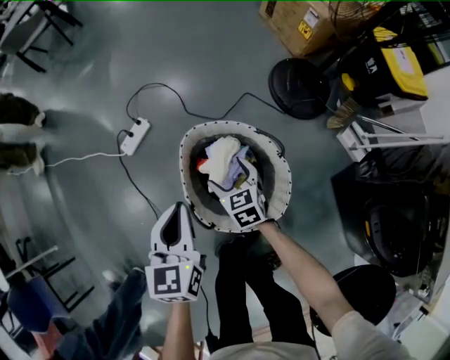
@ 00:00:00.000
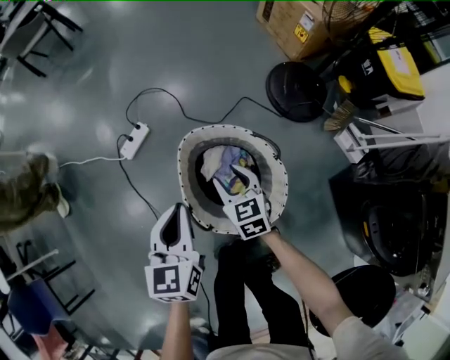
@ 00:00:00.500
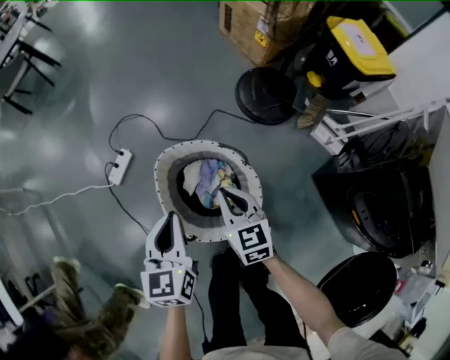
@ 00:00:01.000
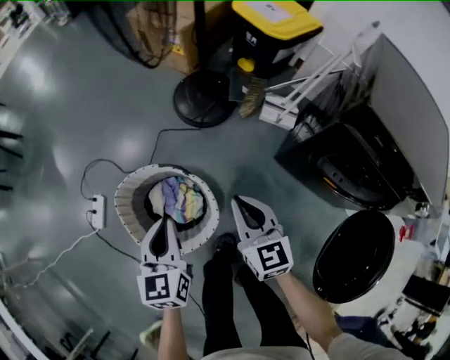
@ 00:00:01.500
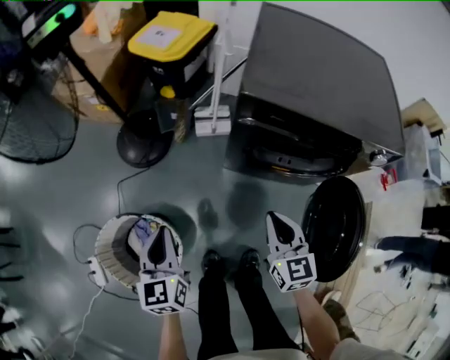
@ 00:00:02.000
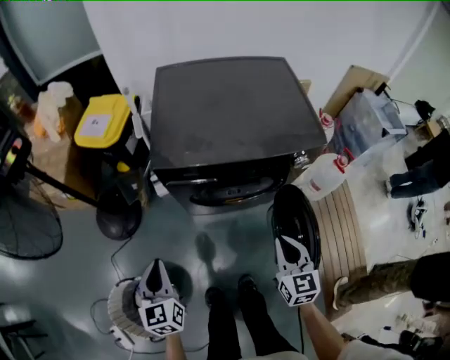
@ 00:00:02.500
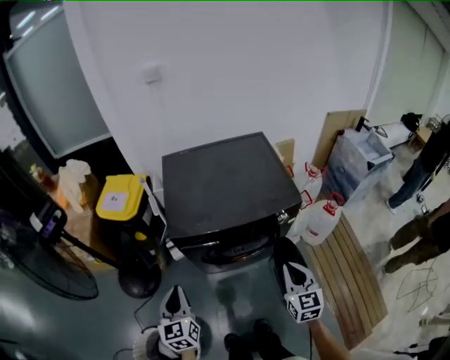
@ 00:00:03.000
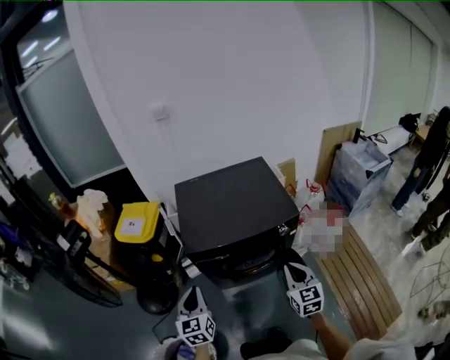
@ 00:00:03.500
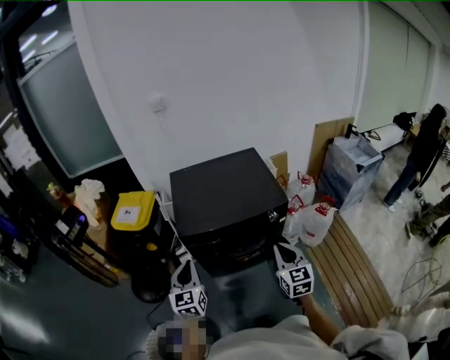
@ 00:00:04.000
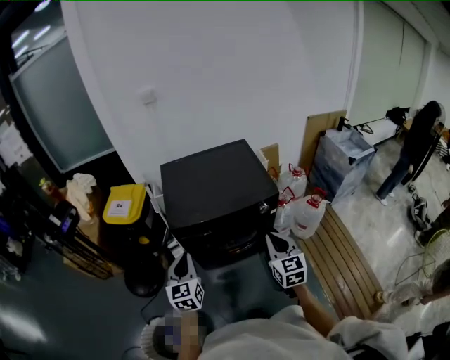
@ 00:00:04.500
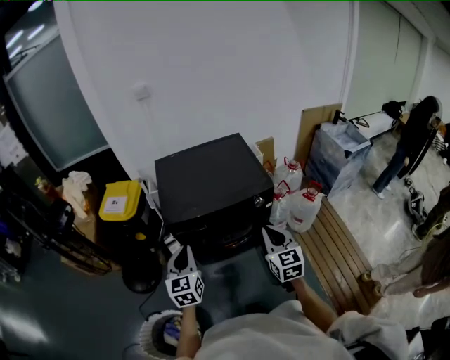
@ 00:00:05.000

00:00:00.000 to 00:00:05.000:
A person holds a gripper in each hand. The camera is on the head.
00:00:00.000 to 00:00:02.500: The two grippers travel together, about 70 cm. The left gripper changes its angle by some 60 degrees; the right gripper swivels some 90 degrees, and closes.
00:00:02.500 to 00:00:05.000: The right gripper is displaced upward by approximately 20 cm. Meanwhile the left gripper shifts approximately 25 cm upward and to the right, and changes its angle by some 20 degrees.

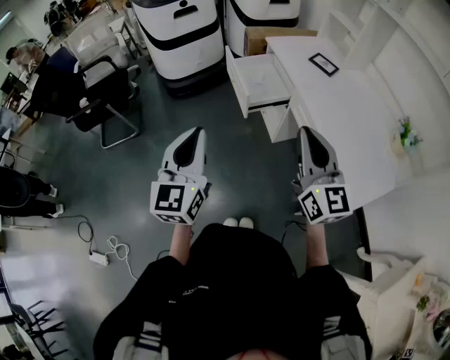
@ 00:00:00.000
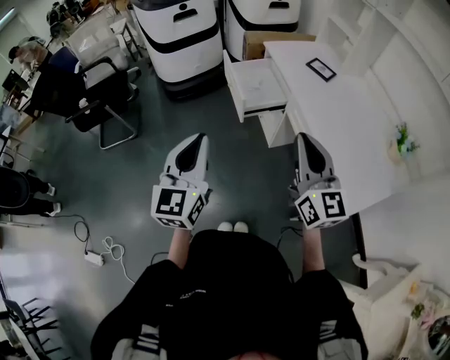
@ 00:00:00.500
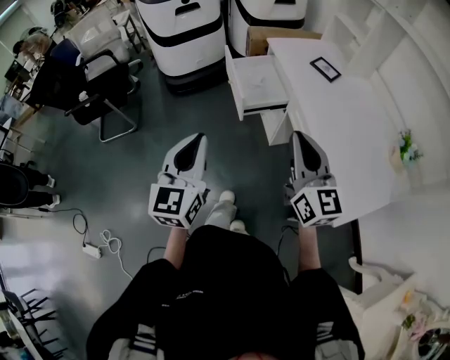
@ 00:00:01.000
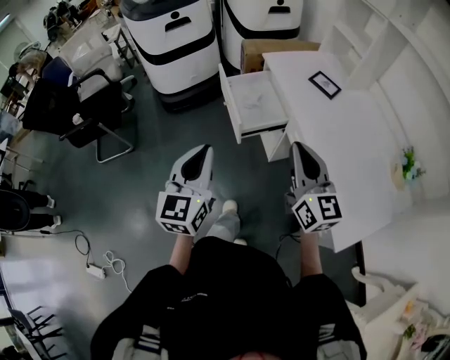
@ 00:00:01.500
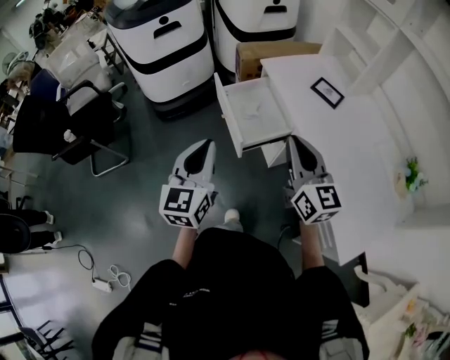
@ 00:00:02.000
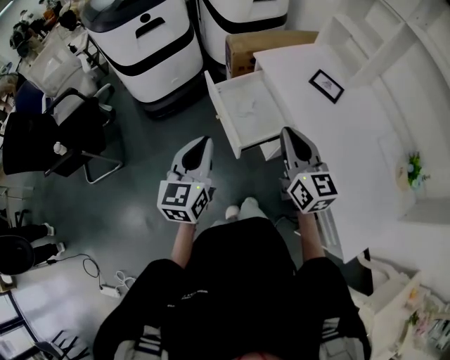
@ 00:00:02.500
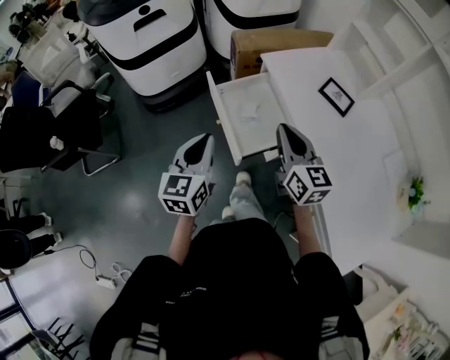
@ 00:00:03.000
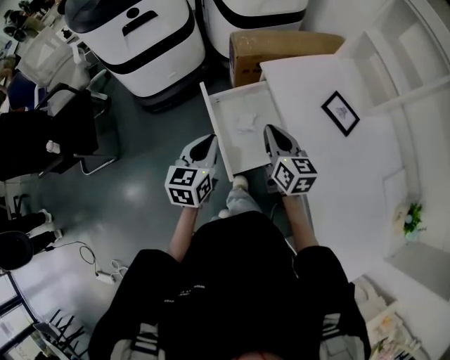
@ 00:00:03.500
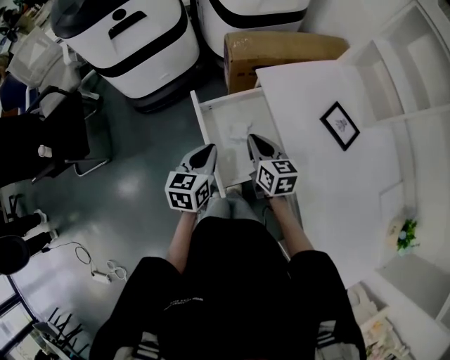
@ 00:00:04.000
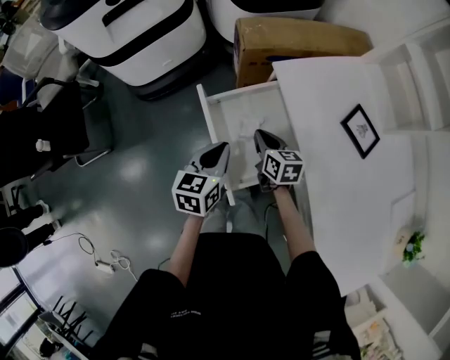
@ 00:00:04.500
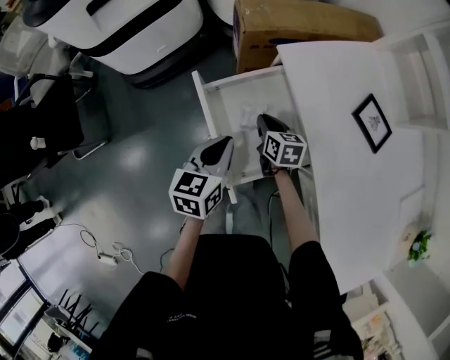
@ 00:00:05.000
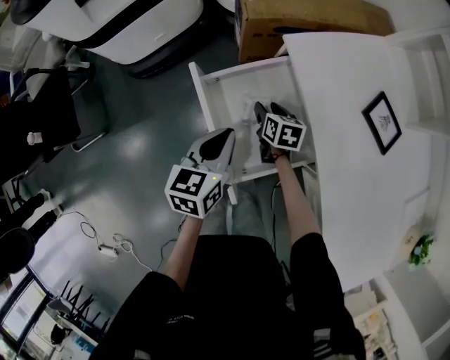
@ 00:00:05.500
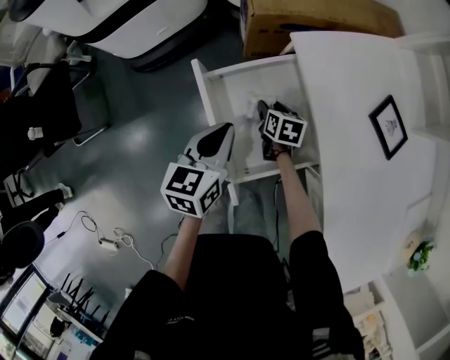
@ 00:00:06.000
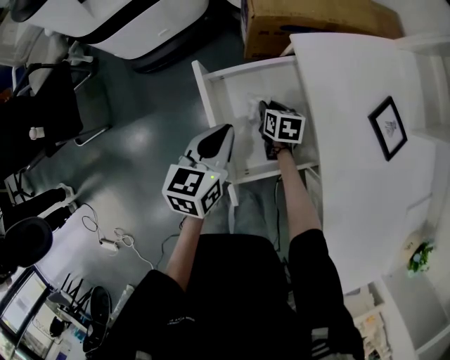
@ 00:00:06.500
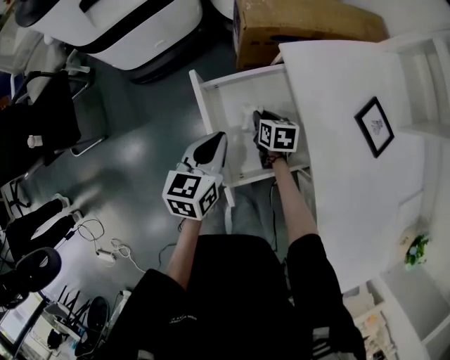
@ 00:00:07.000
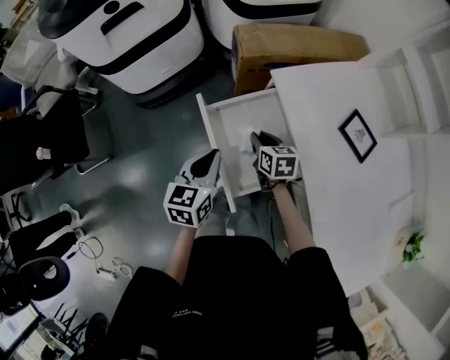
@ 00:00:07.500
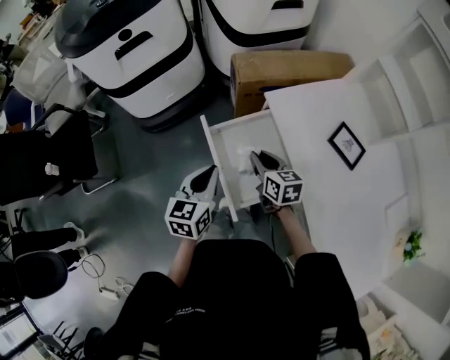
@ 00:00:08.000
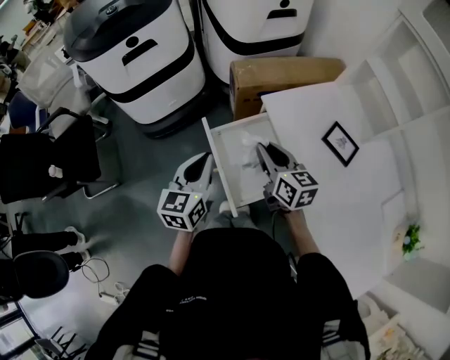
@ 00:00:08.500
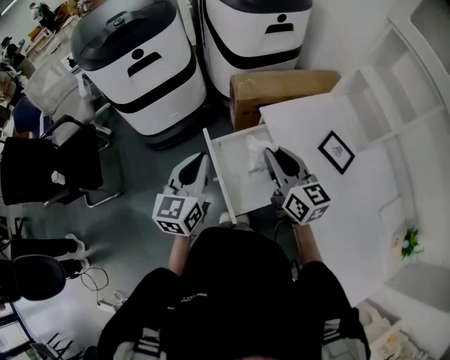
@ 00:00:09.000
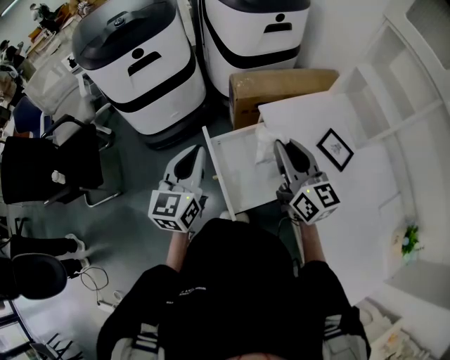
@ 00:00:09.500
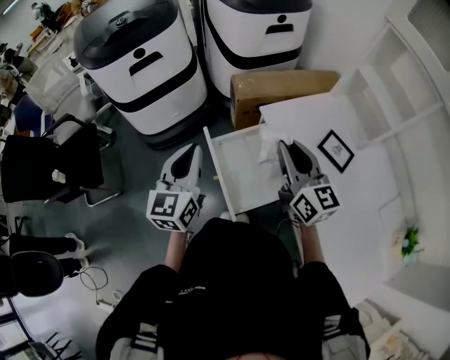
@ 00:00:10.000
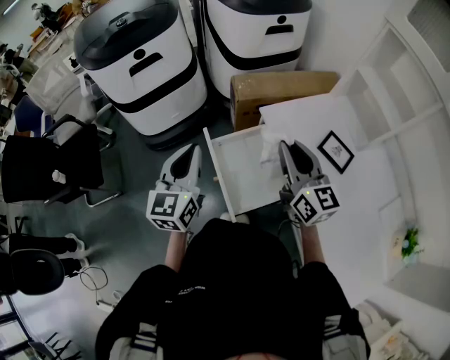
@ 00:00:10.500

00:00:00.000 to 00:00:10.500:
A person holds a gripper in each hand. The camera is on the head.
00:00:00.000 to 00:00:02.000: The two grippers go approximately 25 cm forward.
00:00:02.000 to 00:00:04.000: The grippers both shift forward and downward by roughly 40 cm. The right gripper turns by some 30 degrees, while the left gripper changes its angle by approximately 30 degrees.
00:00:04.000 to 00:00:06.500: The left gripper travels downward and forward by roughly 10 cm. The right gripper moves downward, about 25 cm, rotates roughly 30 degrees, and opens and closes again.
00:00:06.500 to 00:00:08.500: The left gripper heads upward, covering about 15 cm, while the right gripper is displaced upward by approximately 35 cm, and angles its fingers upward, by about 40 degrees.
00:00:08.500 to 00:00:10.500: The grippers both shift upward by approximately 10 cm. The right gripper swivels approximately 20 degrees.

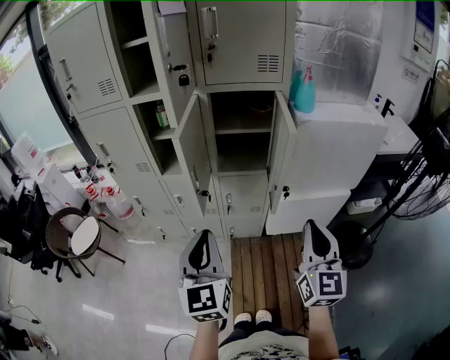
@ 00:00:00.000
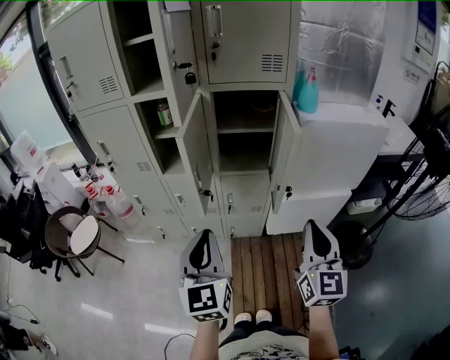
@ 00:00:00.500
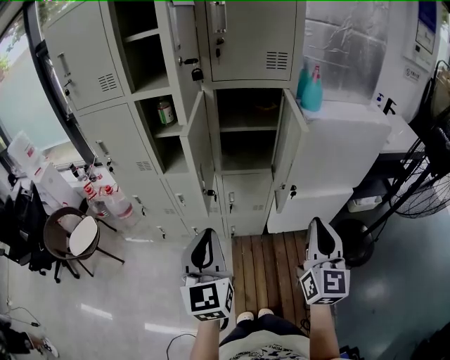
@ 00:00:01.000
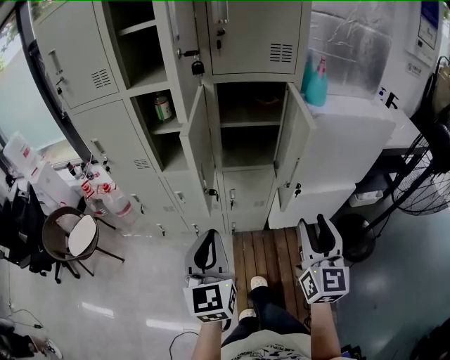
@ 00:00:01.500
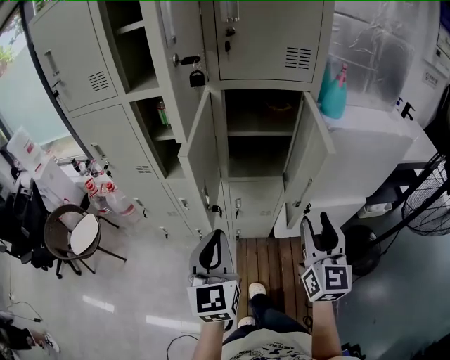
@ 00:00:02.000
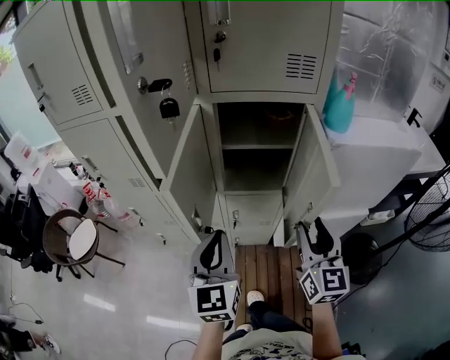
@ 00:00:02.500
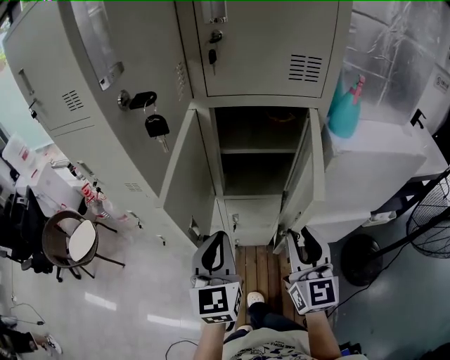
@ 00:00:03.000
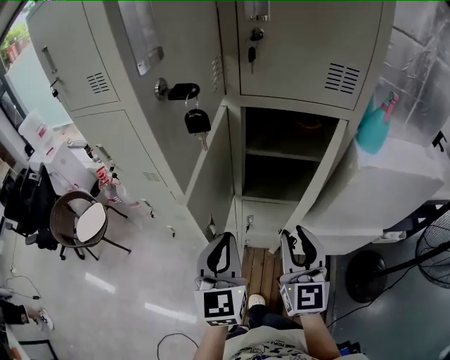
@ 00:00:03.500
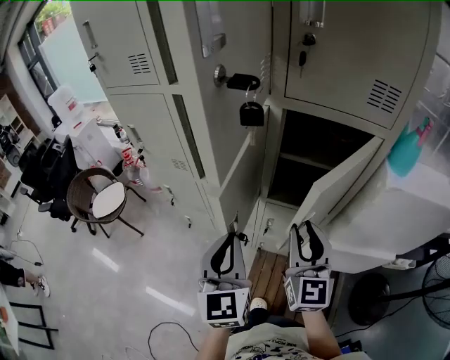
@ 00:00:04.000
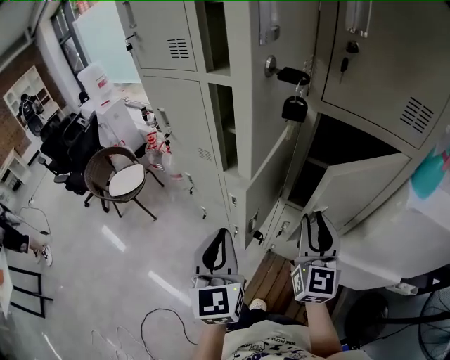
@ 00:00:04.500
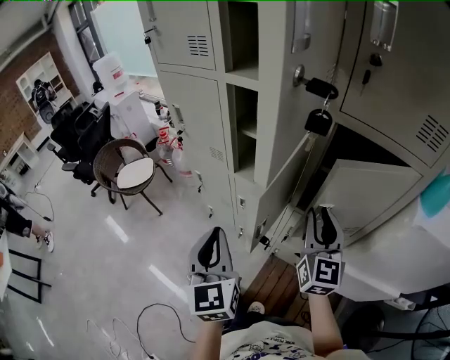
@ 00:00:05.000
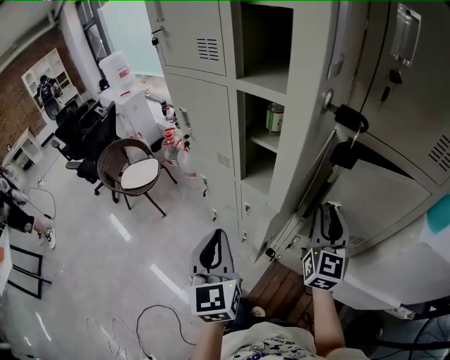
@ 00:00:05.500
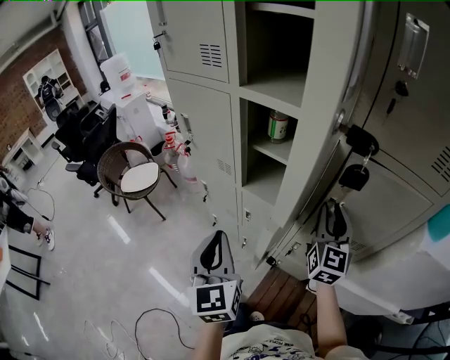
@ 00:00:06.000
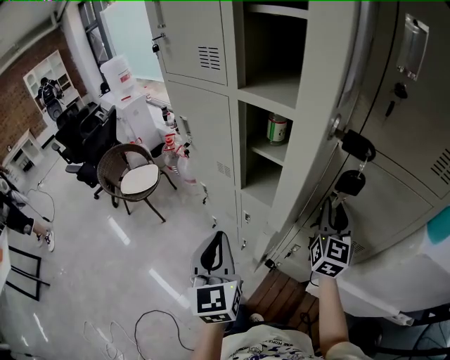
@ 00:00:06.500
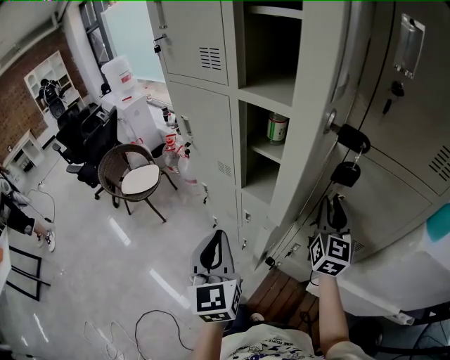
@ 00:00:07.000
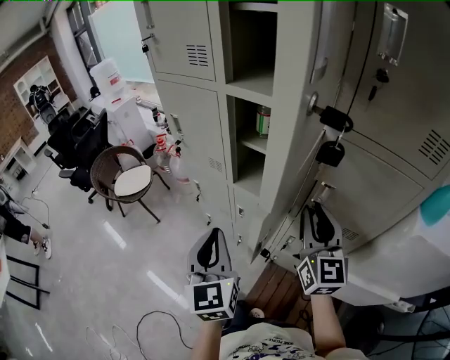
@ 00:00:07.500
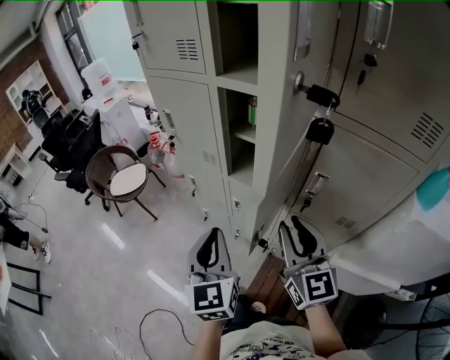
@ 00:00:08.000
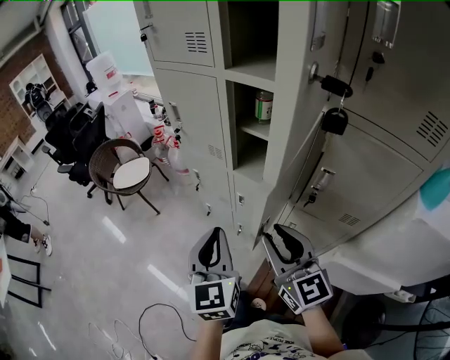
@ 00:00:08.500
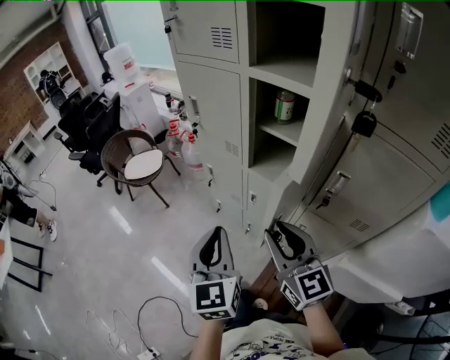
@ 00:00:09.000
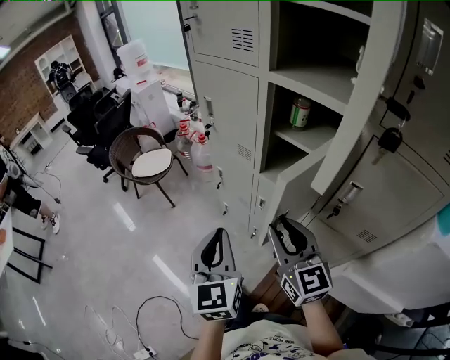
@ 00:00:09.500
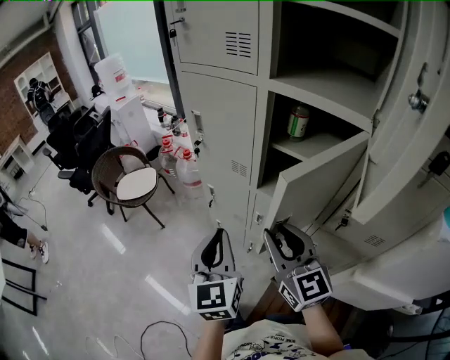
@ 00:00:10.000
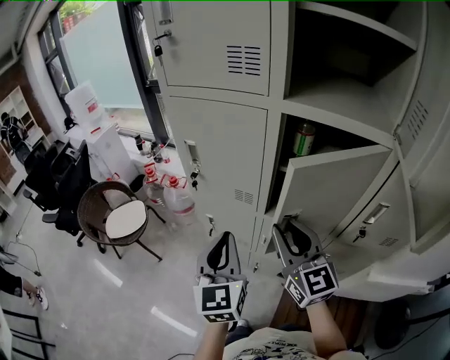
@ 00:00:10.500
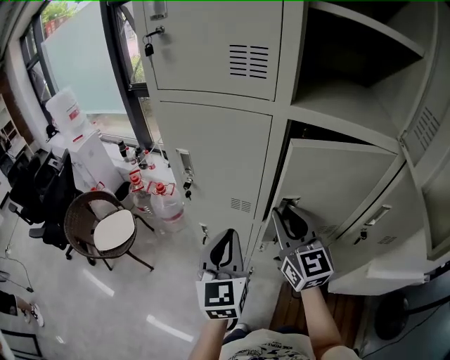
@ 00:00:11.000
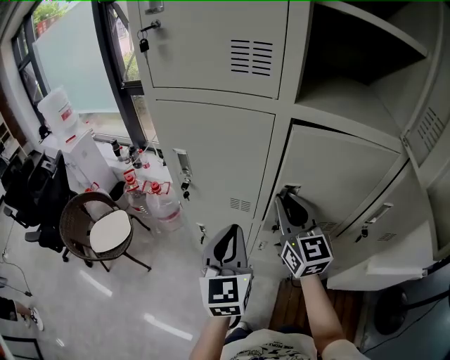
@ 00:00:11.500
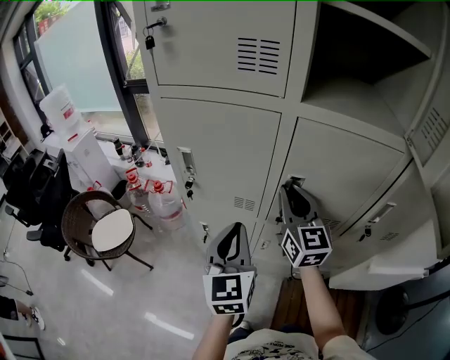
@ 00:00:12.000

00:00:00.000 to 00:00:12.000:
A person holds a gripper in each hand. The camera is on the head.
00:00:00.000 to 00:00:02.000: The two grippers go roughly 10 cm forward. The right gripper opens its fingers.
00:00:02.000 to 00:00:04.000: The left gripper goes approximately 10 cm forward. The right gripper heads forward and to the left, covering roughly 20 cm.
00:00:04.000 to 00:00:06.000: The left gripper is displaced to the left and forward by about 15 cm, and changes its angle by some 20 degrees. The right gripper is displaced forward by approximately 15 cm.
00:00:06.000 to 00:00:08.000: The right gripper goes roughly 15 cm backward and to the left, and changes its angle by approximately 20 degrees.
00:00:08.000 to 00:00:10.000: The left gripper is displaced forward and to the left by roughly 10 cm; the right gripper is displaced to the left and forward by some 15 cm.
00:00:10.000 to 00:00:12.000: The right gripper shifts by some 25 cm, and rotates about 30 degrees, while the left gripper ends up approximately 20 cm from where it was, and turns by approximately 20 degrees.
